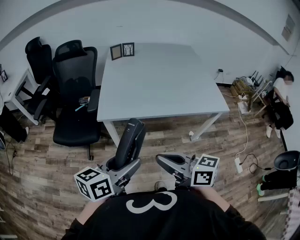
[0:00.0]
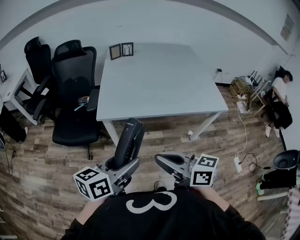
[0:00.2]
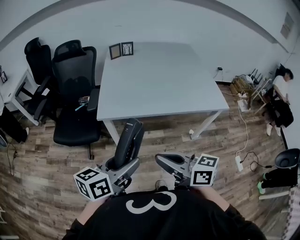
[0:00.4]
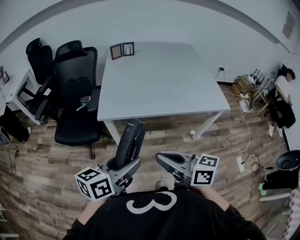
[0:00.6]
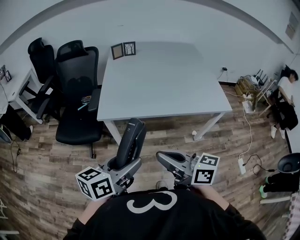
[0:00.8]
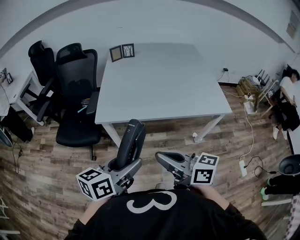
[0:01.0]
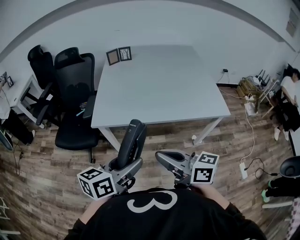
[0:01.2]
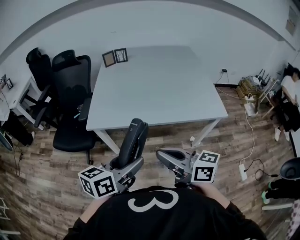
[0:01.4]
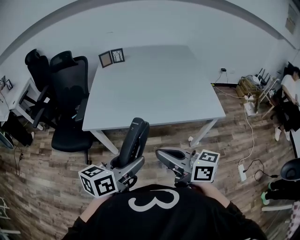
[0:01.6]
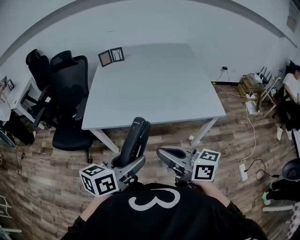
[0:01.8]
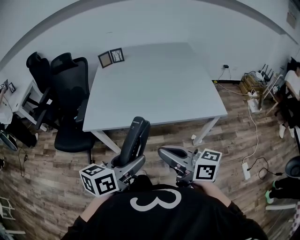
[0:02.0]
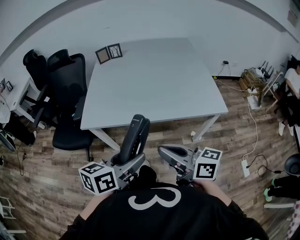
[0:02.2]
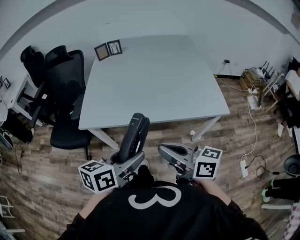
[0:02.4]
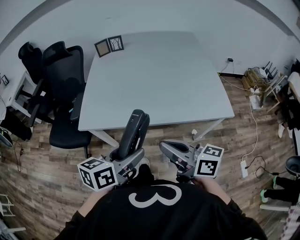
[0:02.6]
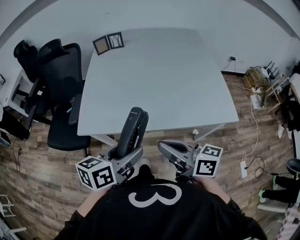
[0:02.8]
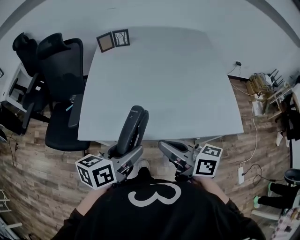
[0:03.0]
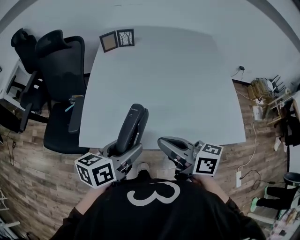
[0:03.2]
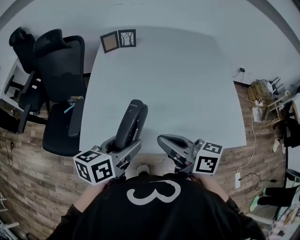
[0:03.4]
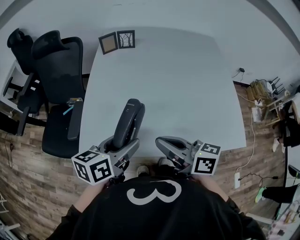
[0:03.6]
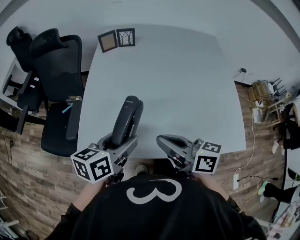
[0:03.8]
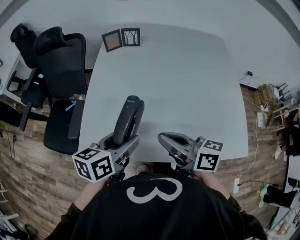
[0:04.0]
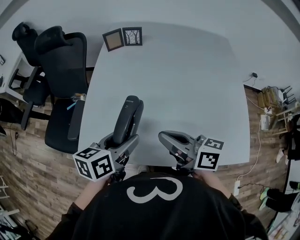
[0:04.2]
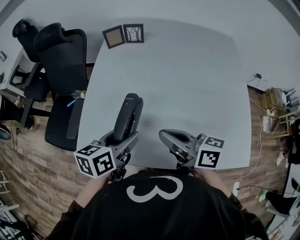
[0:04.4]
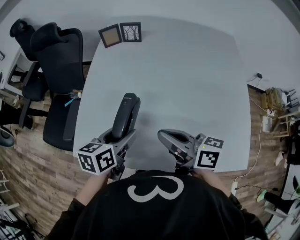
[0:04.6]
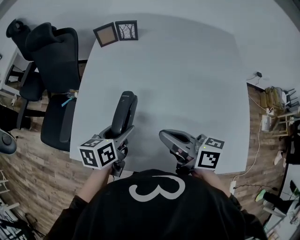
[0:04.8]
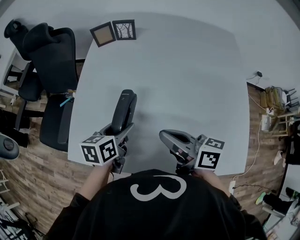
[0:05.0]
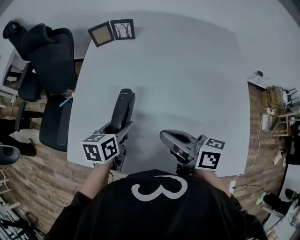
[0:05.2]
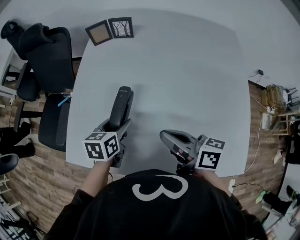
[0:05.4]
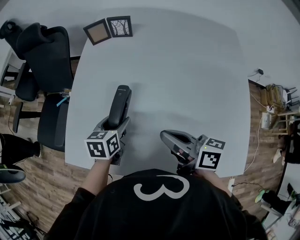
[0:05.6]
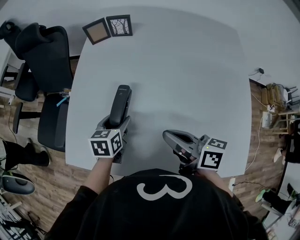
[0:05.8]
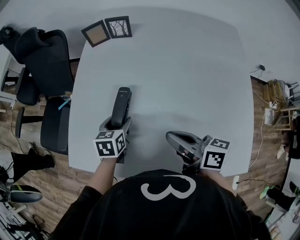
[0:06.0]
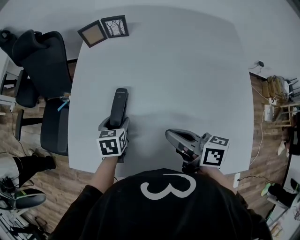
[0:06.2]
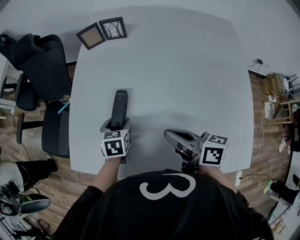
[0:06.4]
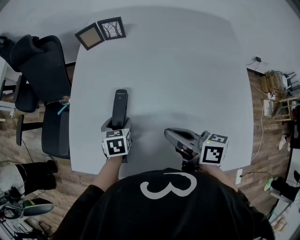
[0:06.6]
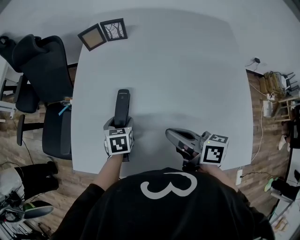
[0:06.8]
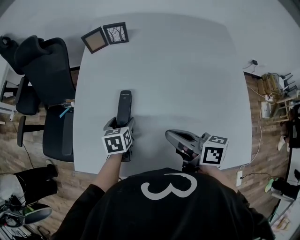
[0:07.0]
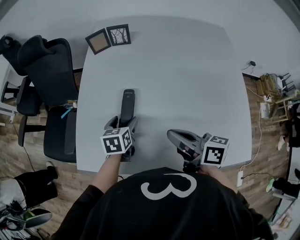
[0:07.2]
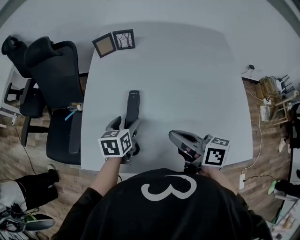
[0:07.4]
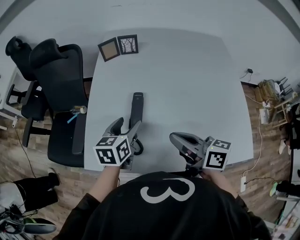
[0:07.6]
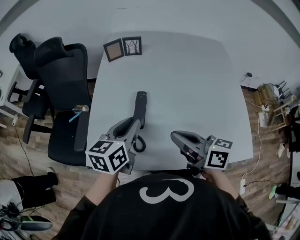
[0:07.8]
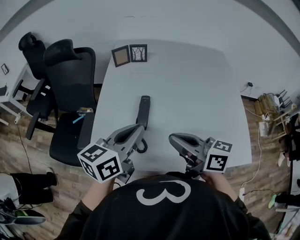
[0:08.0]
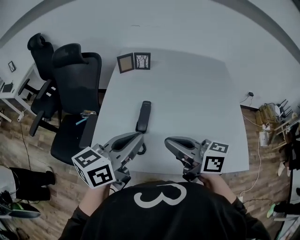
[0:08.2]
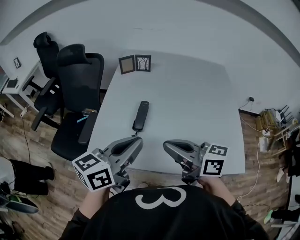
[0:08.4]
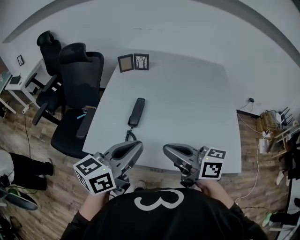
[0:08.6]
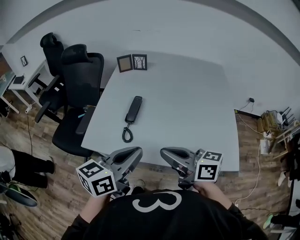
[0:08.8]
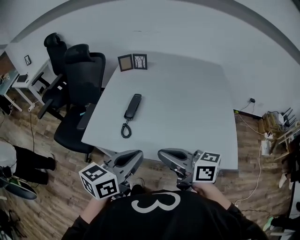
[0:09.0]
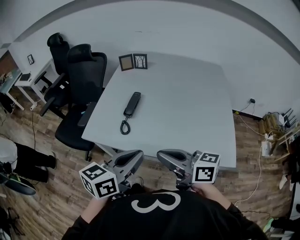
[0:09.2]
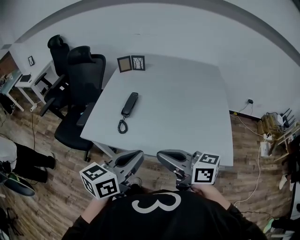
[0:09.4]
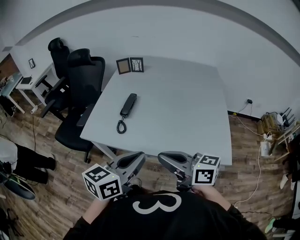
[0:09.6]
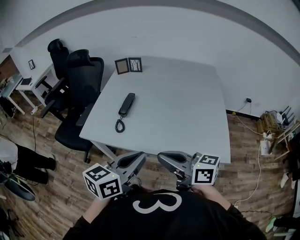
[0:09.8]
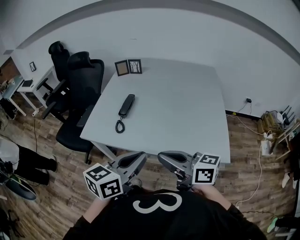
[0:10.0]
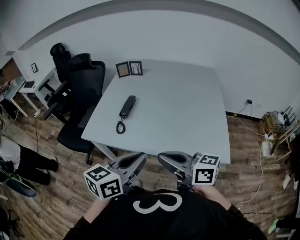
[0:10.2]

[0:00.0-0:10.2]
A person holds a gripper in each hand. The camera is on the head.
0:00.0 to 0:01.4: Both grippers move to the right, about 15 cm.
0:01.4 to 0:03.0: The two grippers go roughly 20 cm forward.
0:03.0 to 0:04.4: The two grippers go some 20 cm forward.
0:04.4 to 0:05.8: The left gripper is displaced downward and forward by roughly 15 cm, and changes its angle by roughly 20 degrees. The right gripper travels to the right by about 5 cm.
0:05.8 to 0:07.2: The grippers make only small movements.
0:07.2 to 0:08.8: The right gripper is displaced backward and upward by some 20 cm, and rotates some 20 degrees, while the left gripper is displaced backward and upward by about 35 cm, points its fingers roughly 30 degrees further upward, and closes.
0:08.8 to 0:10.2: Both grippers move backward and to the right, some 15 cm.

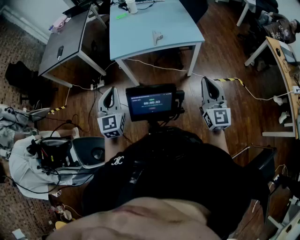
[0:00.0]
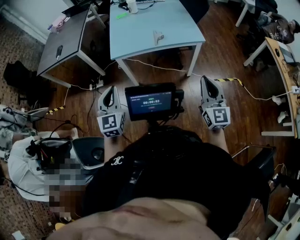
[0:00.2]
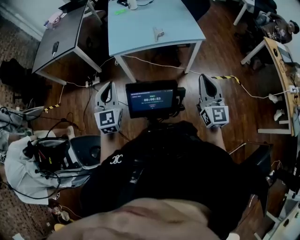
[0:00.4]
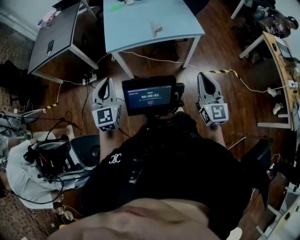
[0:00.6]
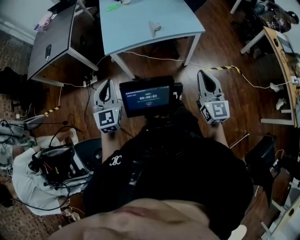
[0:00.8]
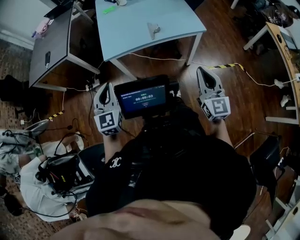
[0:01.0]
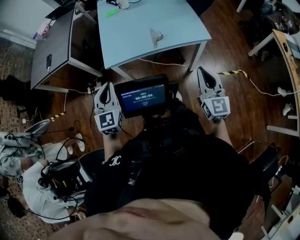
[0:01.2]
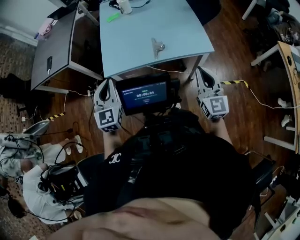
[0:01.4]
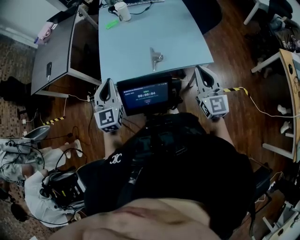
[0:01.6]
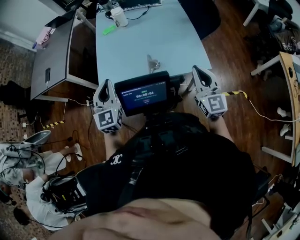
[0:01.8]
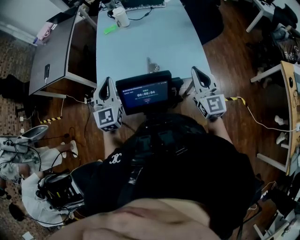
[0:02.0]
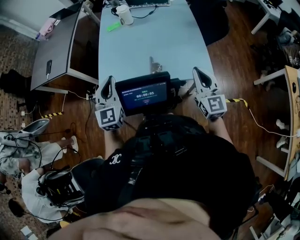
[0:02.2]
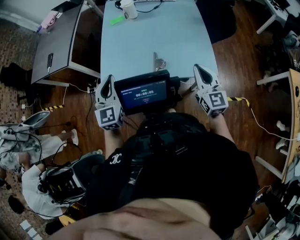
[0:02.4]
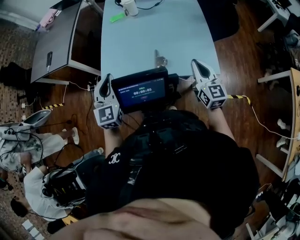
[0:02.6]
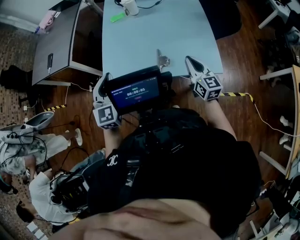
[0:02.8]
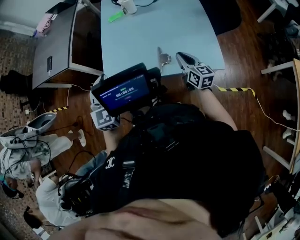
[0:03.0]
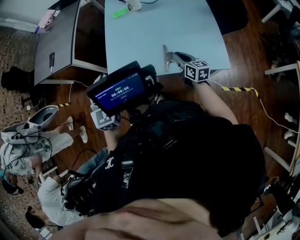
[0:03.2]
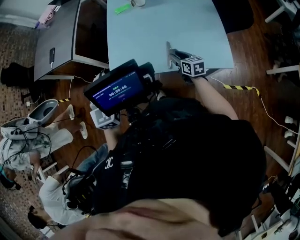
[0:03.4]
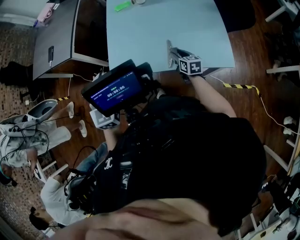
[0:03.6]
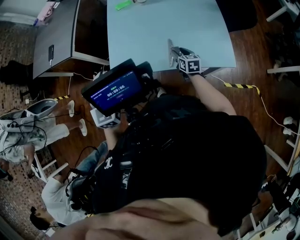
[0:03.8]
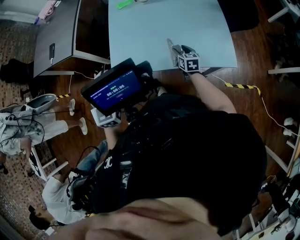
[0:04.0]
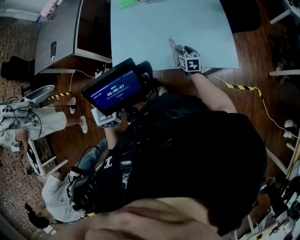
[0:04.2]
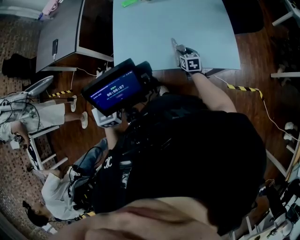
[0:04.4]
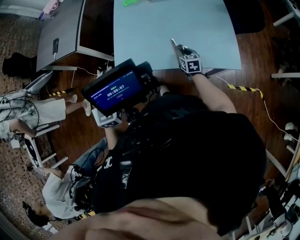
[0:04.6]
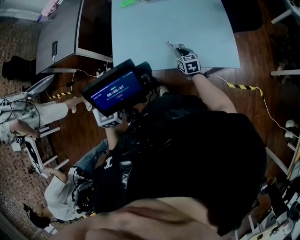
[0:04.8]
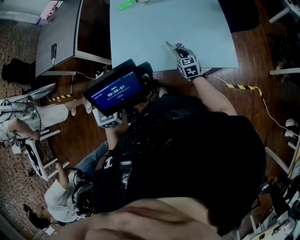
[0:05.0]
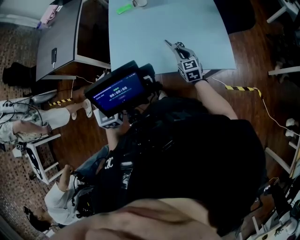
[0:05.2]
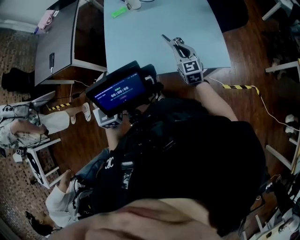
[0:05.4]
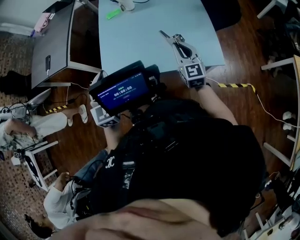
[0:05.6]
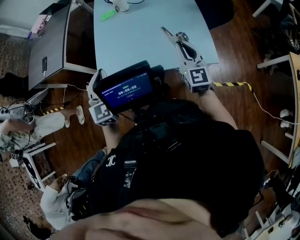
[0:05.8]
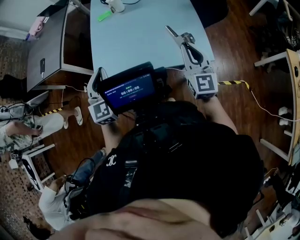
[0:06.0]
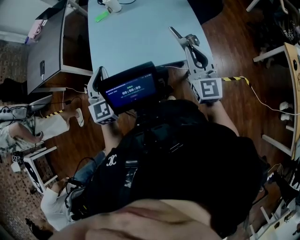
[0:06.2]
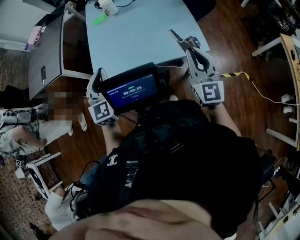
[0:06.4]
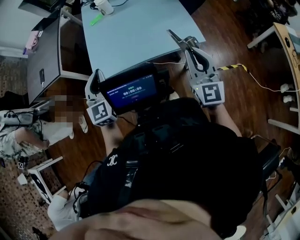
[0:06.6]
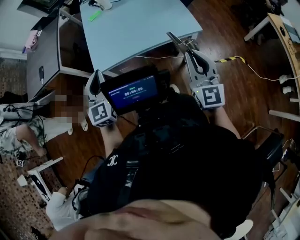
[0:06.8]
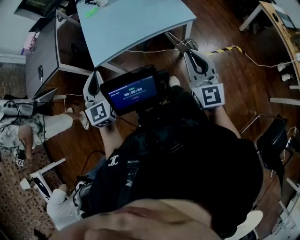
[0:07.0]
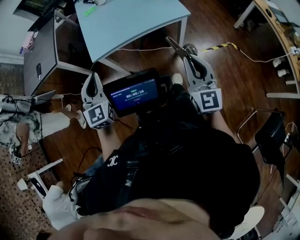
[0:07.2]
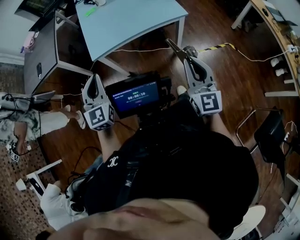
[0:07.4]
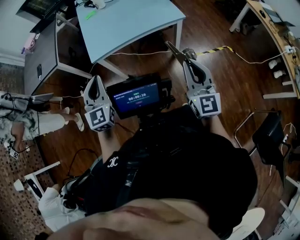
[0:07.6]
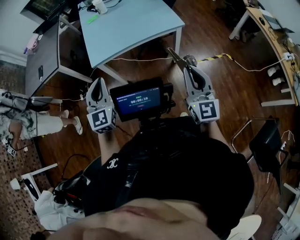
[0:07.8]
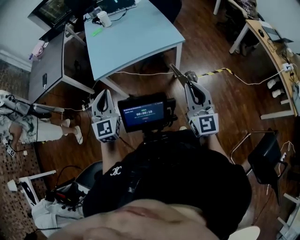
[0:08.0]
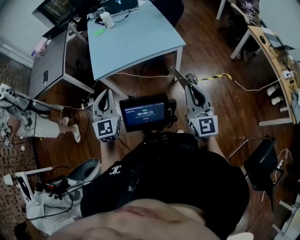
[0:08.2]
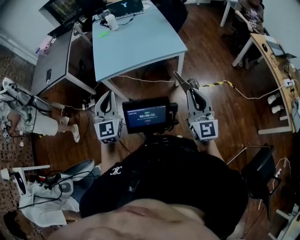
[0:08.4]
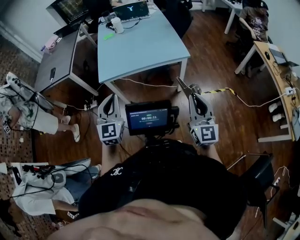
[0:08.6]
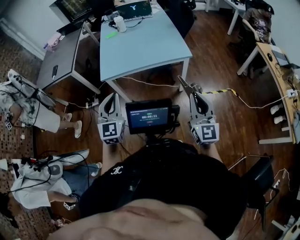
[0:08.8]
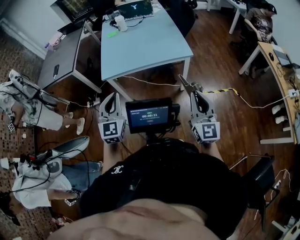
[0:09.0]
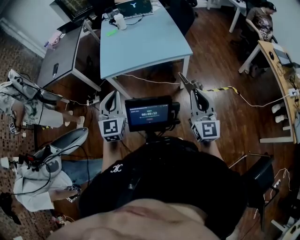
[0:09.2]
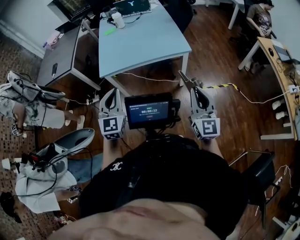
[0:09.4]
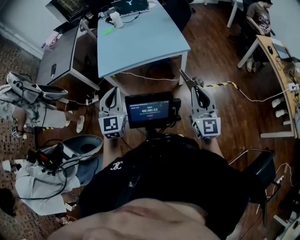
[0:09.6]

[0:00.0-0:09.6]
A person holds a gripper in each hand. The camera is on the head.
0:00.0 to 0:01.6: The two grippers go about 35 cm forward.
0:01.6 to 0:03.2: The left gripper travels forward and to the left by some 10 cm, while the right gripper shifts approximately 30 cm forward, downward and to the left, and rotates approximately 40 degrees.
0:03.2 to 0:04.8: The right gripper is displaced downward by approximately 10 cm, changes its angle by approximately 20 degrees, and opens, then closes again.
0:04.8 to 0:06.4: The left gripper is displaced to the right by roughly 10 cm; the right gripper is displaced upward, backward and to the right by roughly 40 cm, and tilts its fingers roughly 40 degrees upward.
0:06.4 to 0:08.0: The grippers both shift backward by about 30 cm.
0:08.0 to 0:09.6: The grippers stay close to where they were, moving slightly.

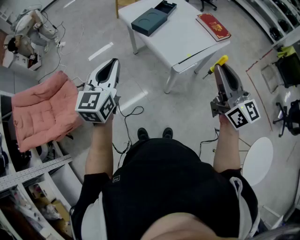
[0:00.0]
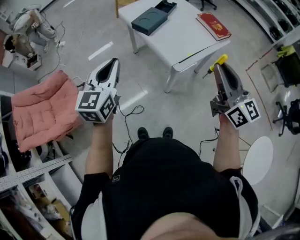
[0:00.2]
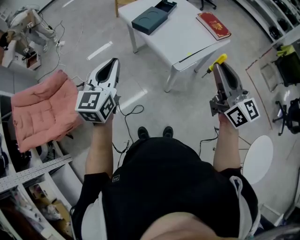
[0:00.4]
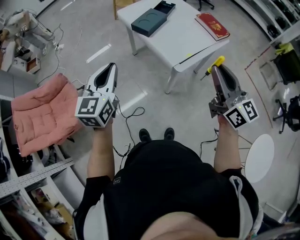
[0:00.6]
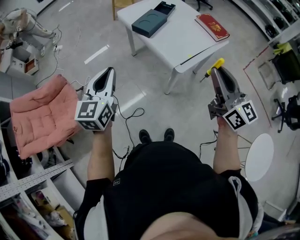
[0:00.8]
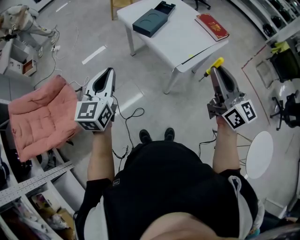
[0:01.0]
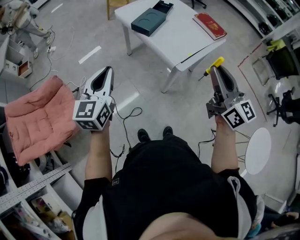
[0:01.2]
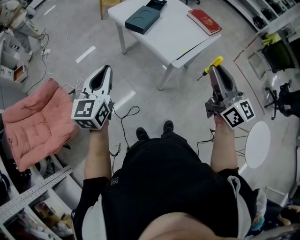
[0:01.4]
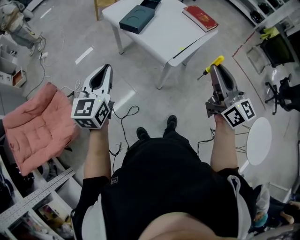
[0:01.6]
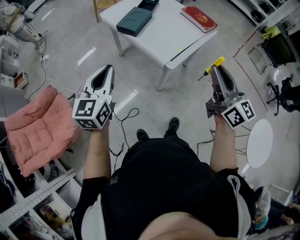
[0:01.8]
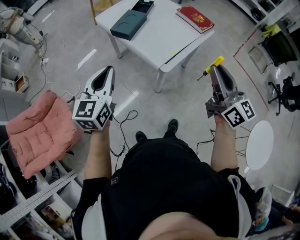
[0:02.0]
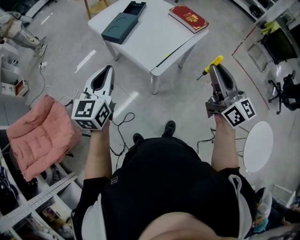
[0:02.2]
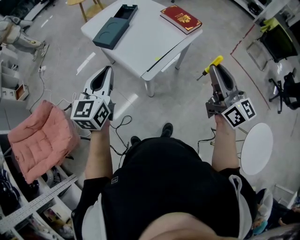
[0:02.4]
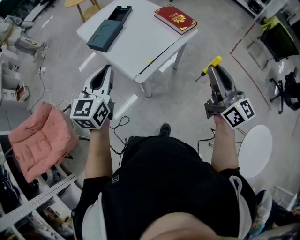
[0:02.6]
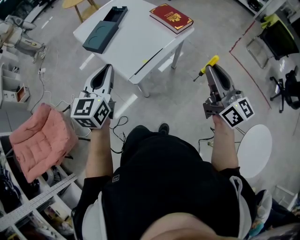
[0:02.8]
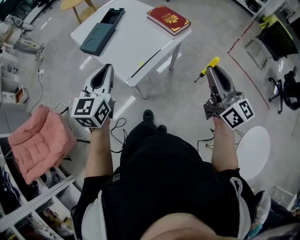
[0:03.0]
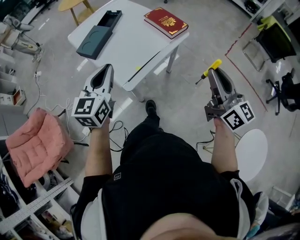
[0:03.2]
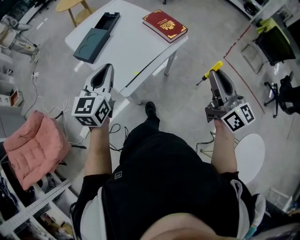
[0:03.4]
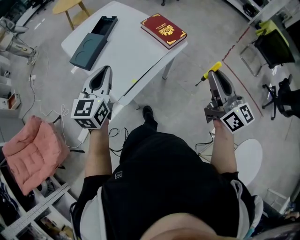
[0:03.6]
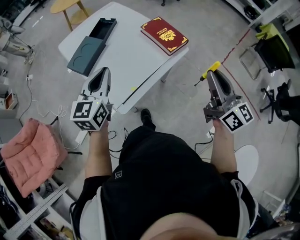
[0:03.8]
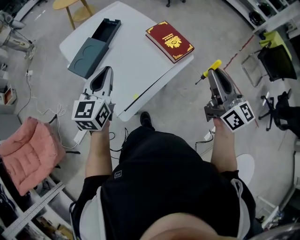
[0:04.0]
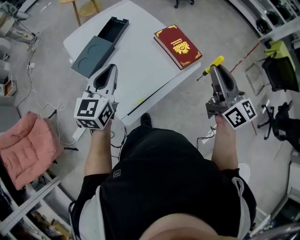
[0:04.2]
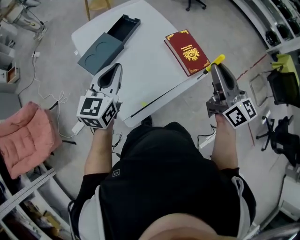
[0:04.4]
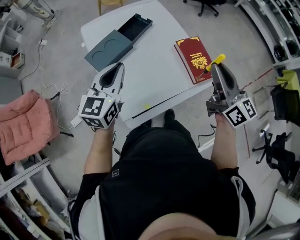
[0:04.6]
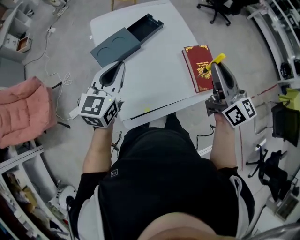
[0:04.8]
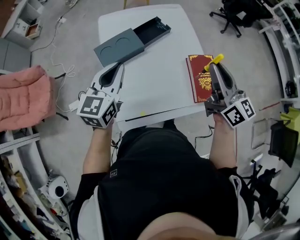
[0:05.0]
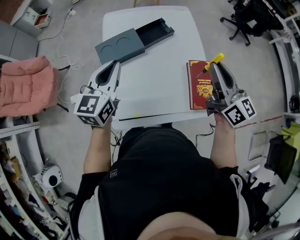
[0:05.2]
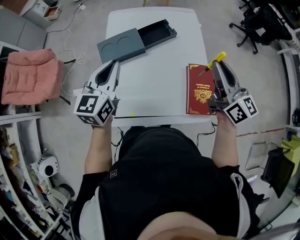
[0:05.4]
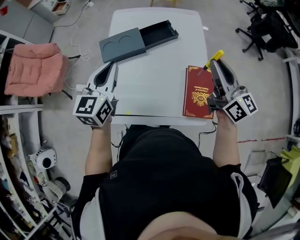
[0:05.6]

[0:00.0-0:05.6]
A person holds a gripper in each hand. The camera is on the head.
0:00.0 to 0:01.4: Both grippers travel together to the left, roughly 10 cm.
0:01.4 to 0:02.8: Both grippers travel together to the right, roughly 30 cm.
0:02.8 to 0:04.2: Both grippers move forward, roughly 25 cm.
0:04.2 to 0:05.6: The right gripper moves some 30 cm, and changes its angle by roughly 40 degrees. The left gripper ends up approximately 10 cm from where it was, and turns by roughly 40 degrees.
